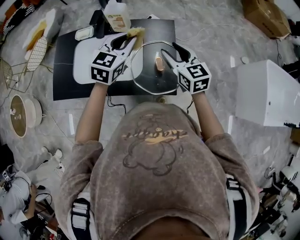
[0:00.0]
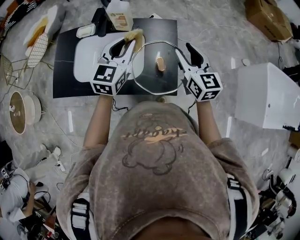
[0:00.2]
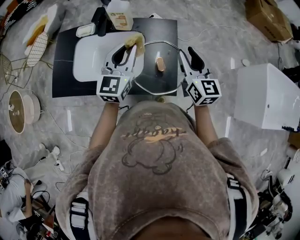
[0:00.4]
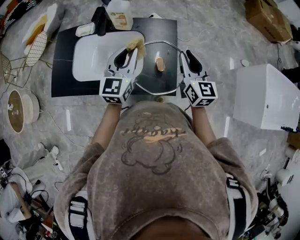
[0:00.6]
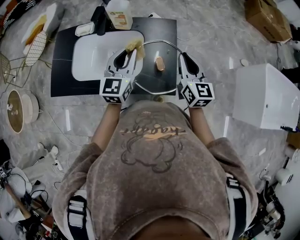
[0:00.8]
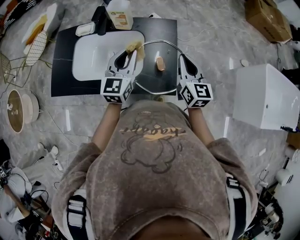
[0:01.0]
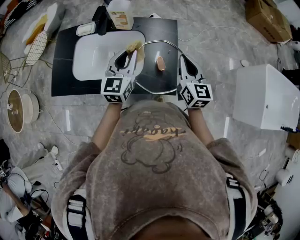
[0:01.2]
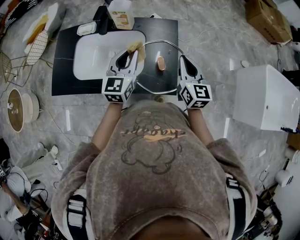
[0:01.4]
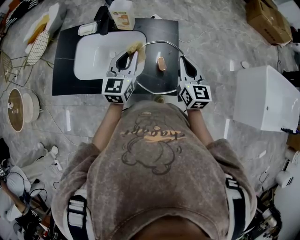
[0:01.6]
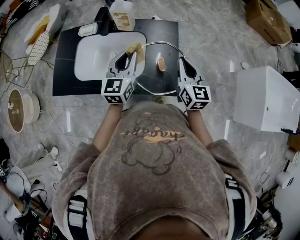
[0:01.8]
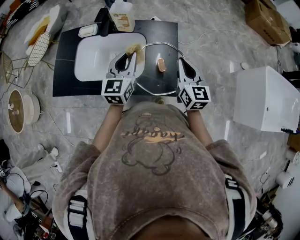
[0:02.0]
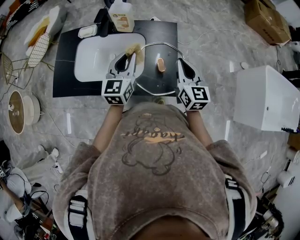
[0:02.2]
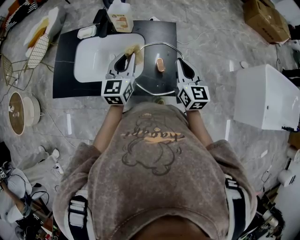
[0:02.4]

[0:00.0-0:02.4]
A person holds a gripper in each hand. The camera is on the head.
0:00.0 to 0:01.2: The left gripper changes place by about 5 cm, and changes its angle by some 20 degrees. Meanwhile the right gripper ends up roughly 5 cm from where it was, and closes up.
0:01.2 to 0:02.4: The grippers stay close to where they were, moving slightly.

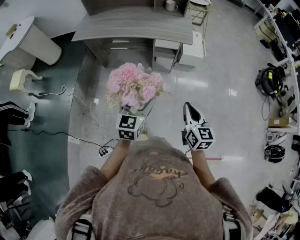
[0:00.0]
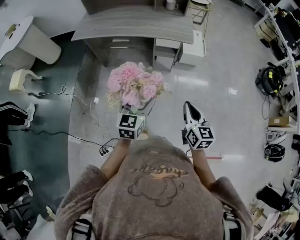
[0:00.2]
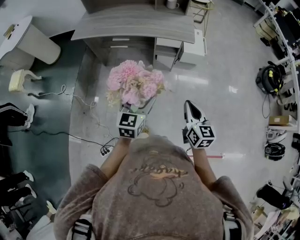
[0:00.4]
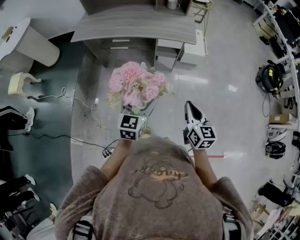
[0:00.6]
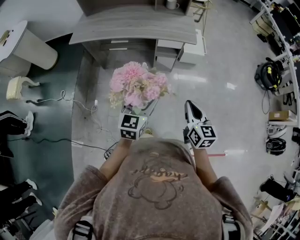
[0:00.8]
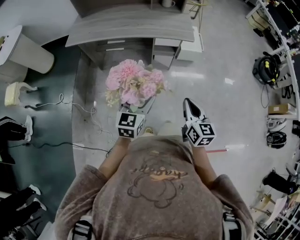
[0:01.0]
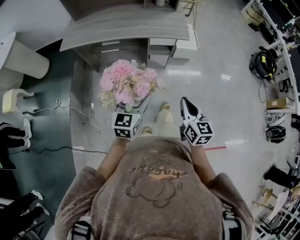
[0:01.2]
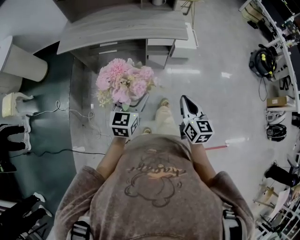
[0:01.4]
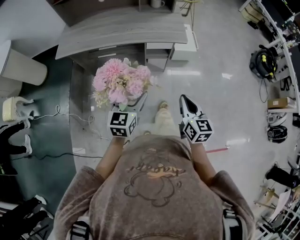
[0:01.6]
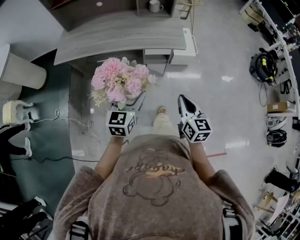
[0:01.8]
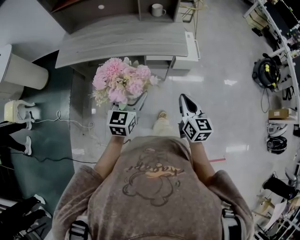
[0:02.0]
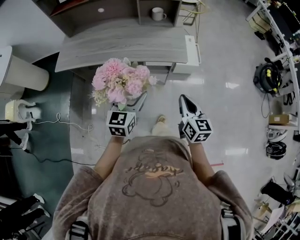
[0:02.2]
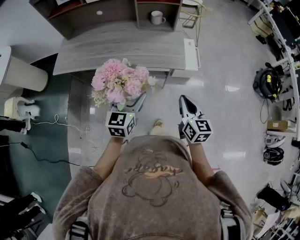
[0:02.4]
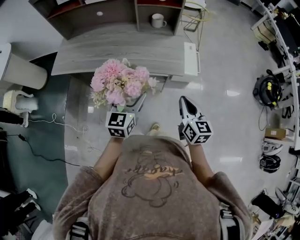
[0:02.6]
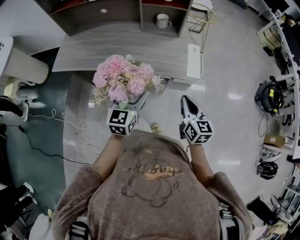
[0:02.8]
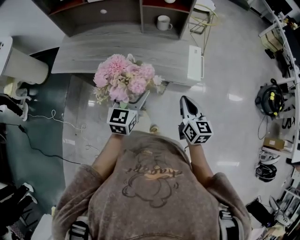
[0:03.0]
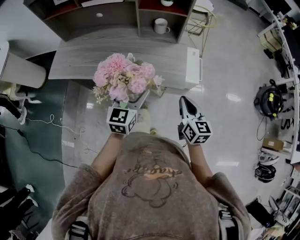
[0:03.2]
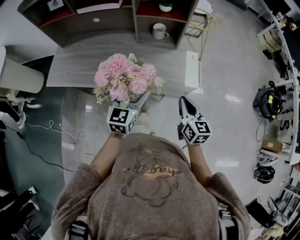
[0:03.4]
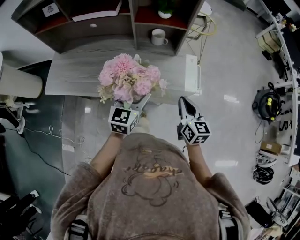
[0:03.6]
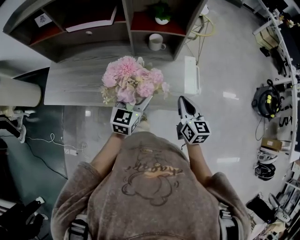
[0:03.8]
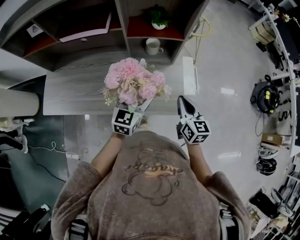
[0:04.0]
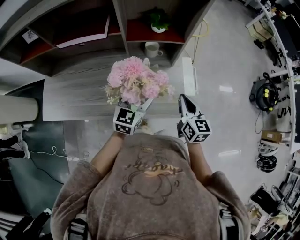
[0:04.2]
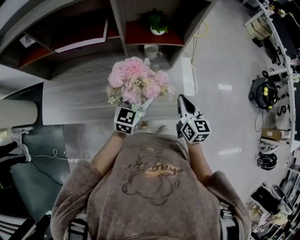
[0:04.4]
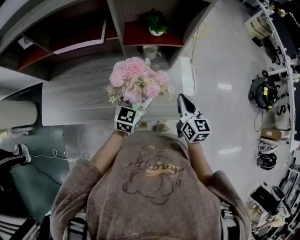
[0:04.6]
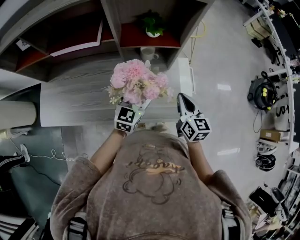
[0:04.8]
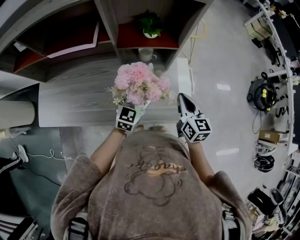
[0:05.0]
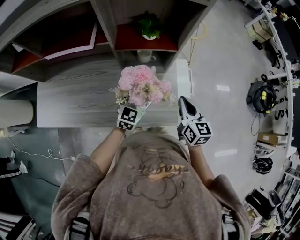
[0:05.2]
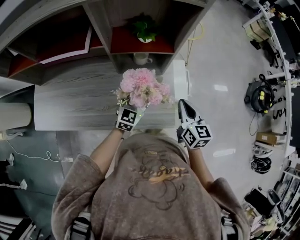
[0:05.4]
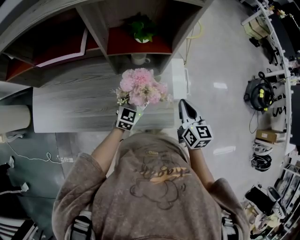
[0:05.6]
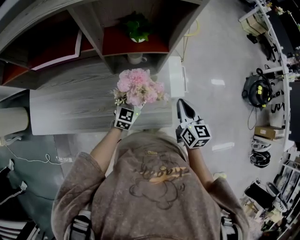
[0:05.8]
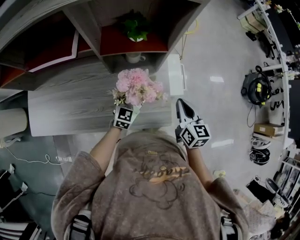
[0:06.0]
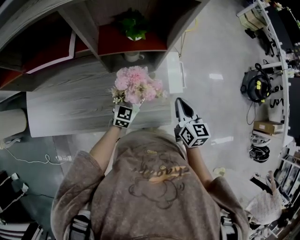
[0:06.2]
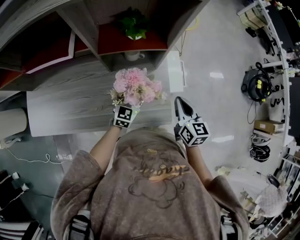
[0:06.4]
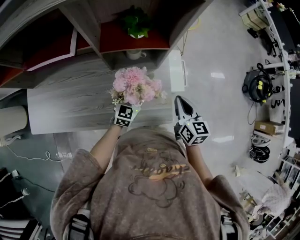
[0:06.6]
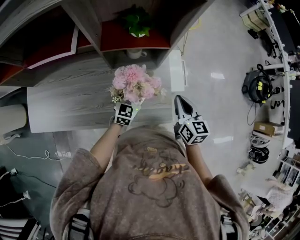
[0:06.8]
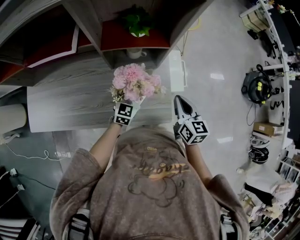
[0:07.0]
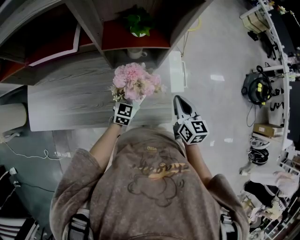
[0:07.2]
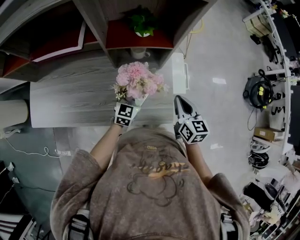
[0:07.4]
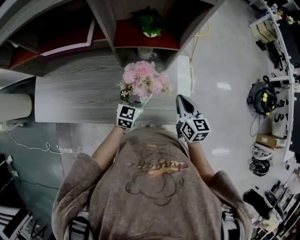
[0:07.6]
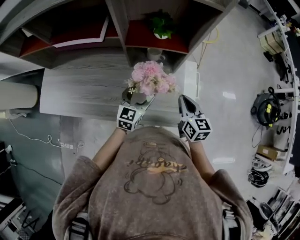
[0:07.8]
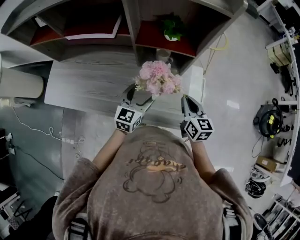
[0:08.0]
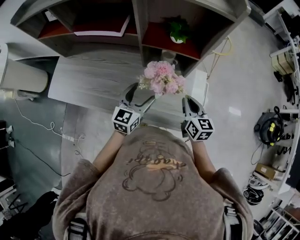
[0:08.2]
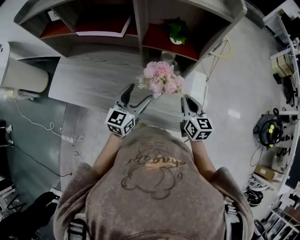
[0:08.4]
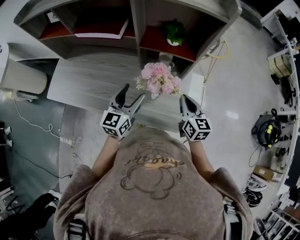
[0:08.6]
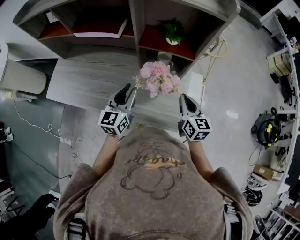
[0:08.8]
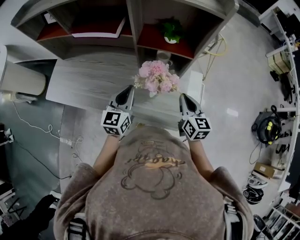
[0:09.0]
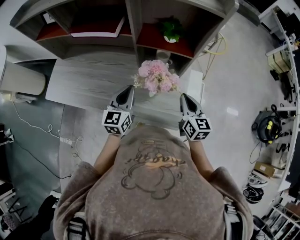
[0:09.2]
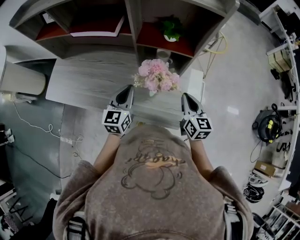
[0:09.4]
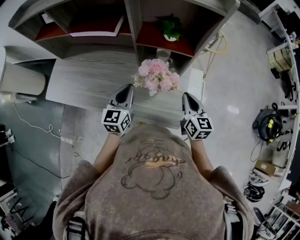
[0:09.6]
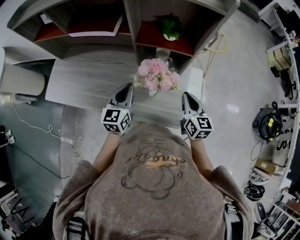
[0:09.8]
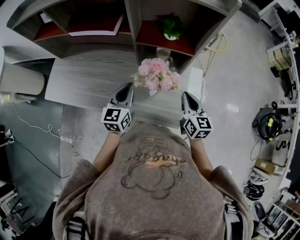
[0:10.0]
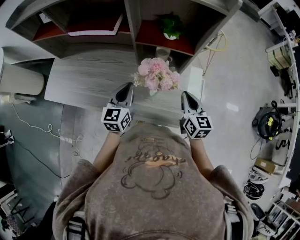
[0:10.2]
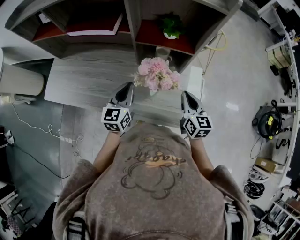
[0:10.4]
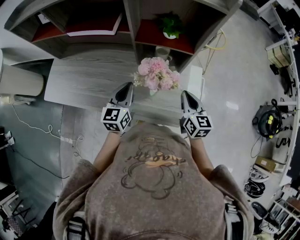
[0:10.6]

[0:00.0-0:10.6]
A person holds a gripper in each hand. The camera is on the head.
0:00.0 to 0:01.6: The grippers both shift forward and to the left by approximately 15 cm.
0:01.6 to 0:03.0: The grippers both shift forward by about 30 cm.
0:03.0 to 0:04.6: The two grippers go roughly 30 cm forward.
0:04.6 to 0:06.0: The right gripper goes approximately 5 cm to the right; the left gripper moves downward and forward, some 15 cm.
0:06.0 to 0:07.6: The grippers stay close to where they were, moving slightly.
0:07.6 to 0:09.0: The left gripper shifts some 15 cm upward and to the left, changes its angle by approximately 20 degrees, and closes its fingers.
0:09.0 to 0:10.6: The grippers make only small movements.

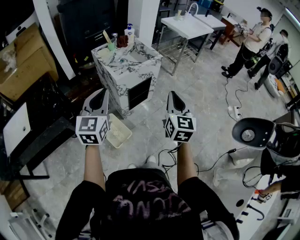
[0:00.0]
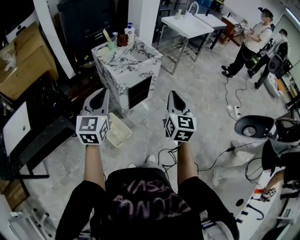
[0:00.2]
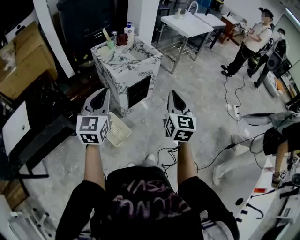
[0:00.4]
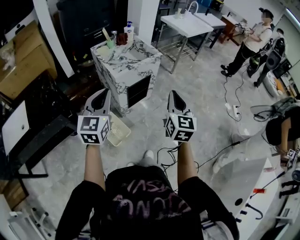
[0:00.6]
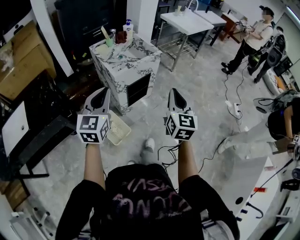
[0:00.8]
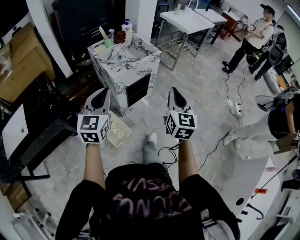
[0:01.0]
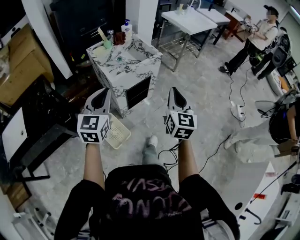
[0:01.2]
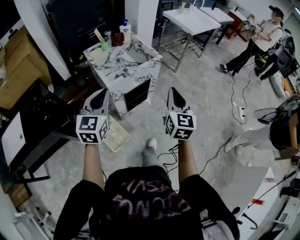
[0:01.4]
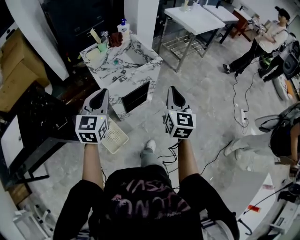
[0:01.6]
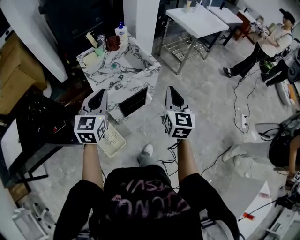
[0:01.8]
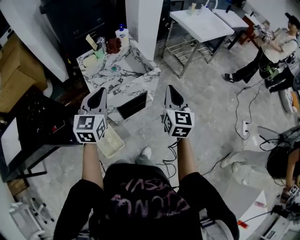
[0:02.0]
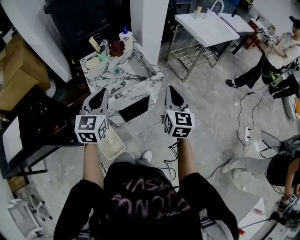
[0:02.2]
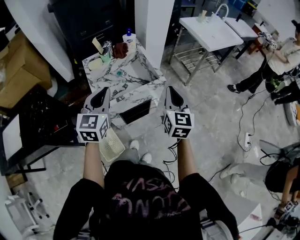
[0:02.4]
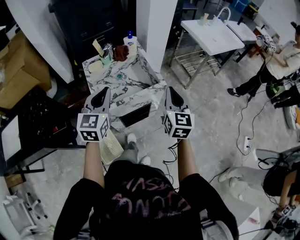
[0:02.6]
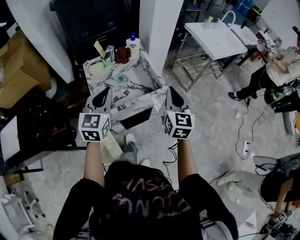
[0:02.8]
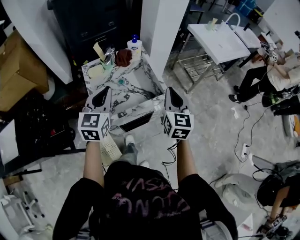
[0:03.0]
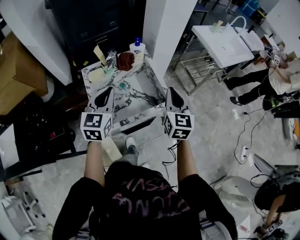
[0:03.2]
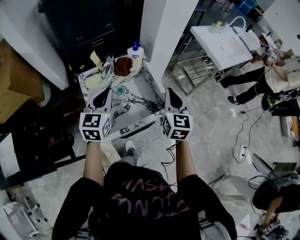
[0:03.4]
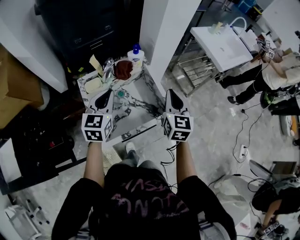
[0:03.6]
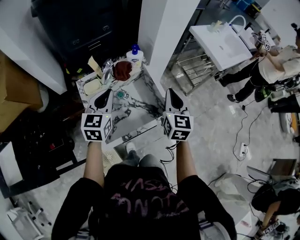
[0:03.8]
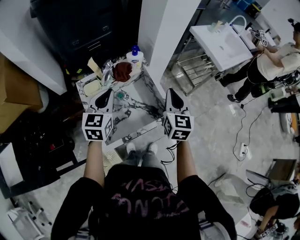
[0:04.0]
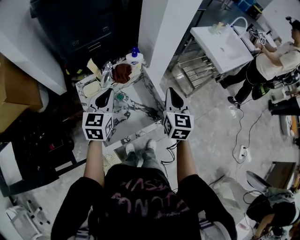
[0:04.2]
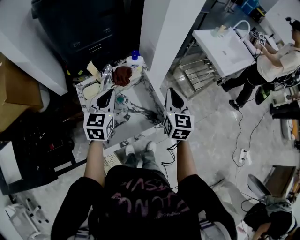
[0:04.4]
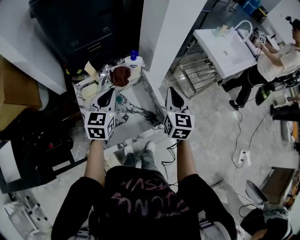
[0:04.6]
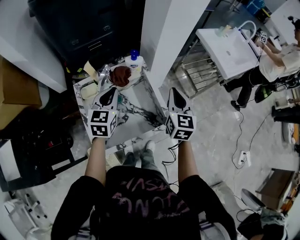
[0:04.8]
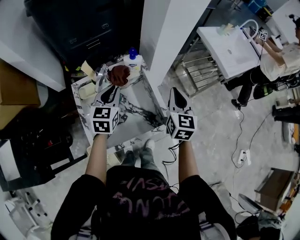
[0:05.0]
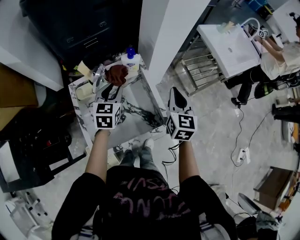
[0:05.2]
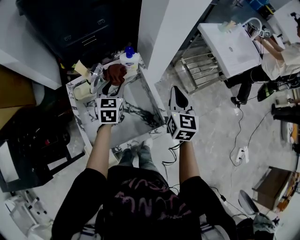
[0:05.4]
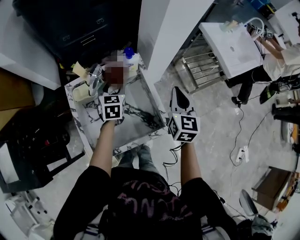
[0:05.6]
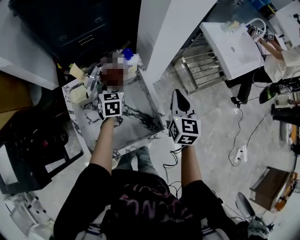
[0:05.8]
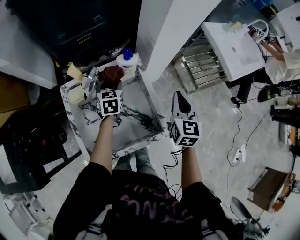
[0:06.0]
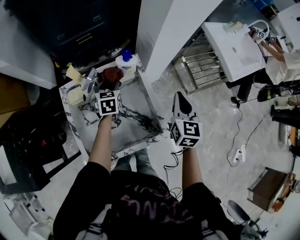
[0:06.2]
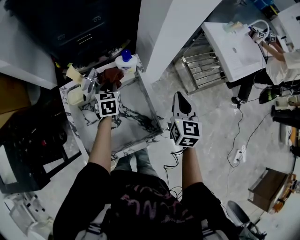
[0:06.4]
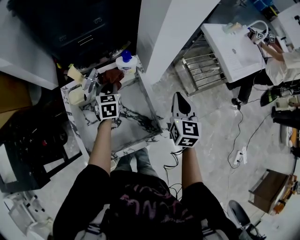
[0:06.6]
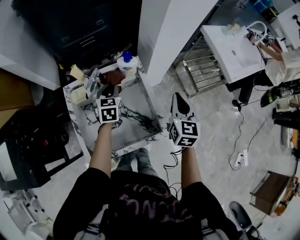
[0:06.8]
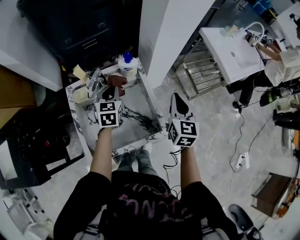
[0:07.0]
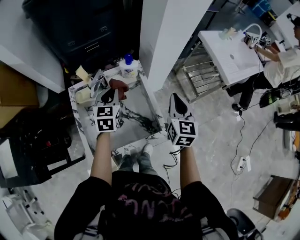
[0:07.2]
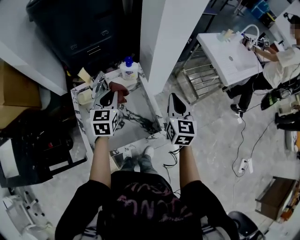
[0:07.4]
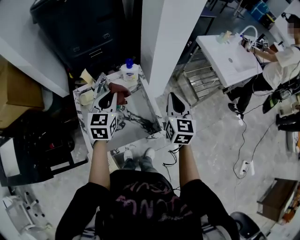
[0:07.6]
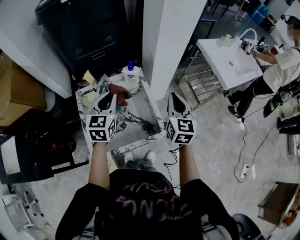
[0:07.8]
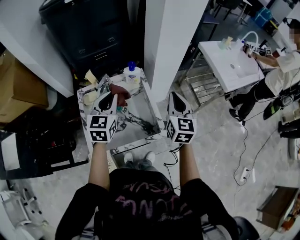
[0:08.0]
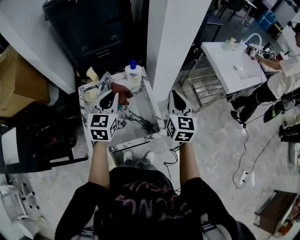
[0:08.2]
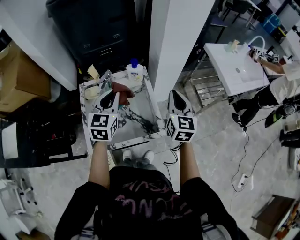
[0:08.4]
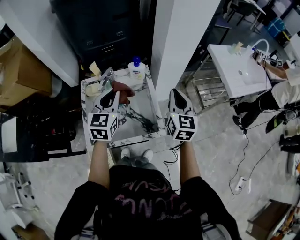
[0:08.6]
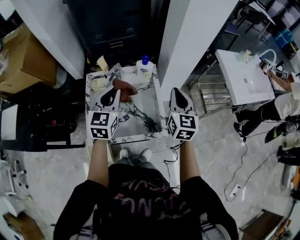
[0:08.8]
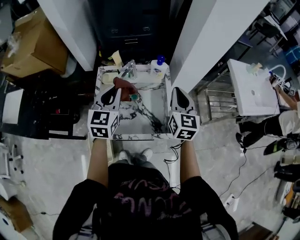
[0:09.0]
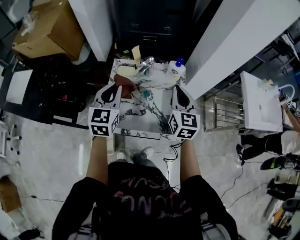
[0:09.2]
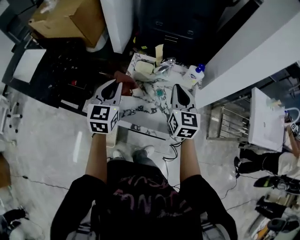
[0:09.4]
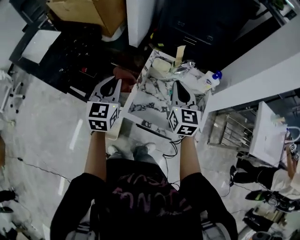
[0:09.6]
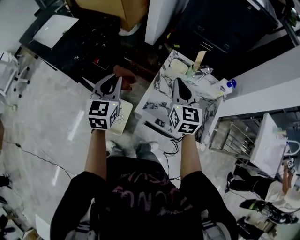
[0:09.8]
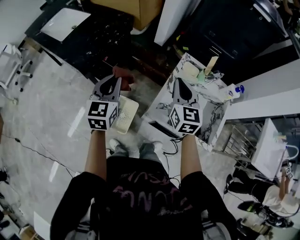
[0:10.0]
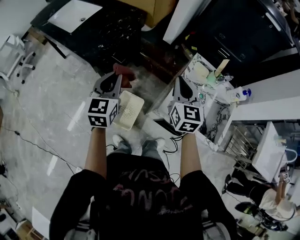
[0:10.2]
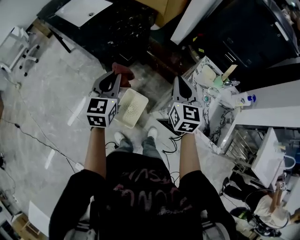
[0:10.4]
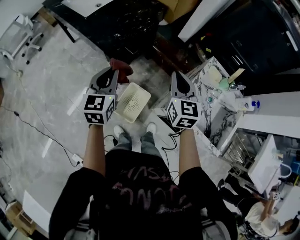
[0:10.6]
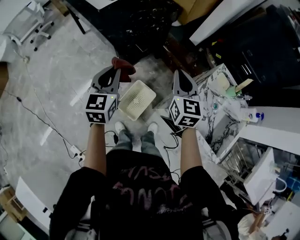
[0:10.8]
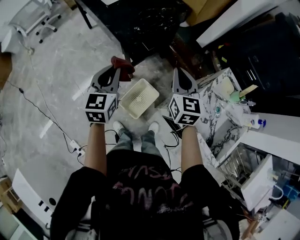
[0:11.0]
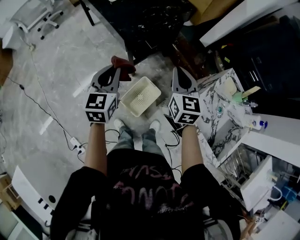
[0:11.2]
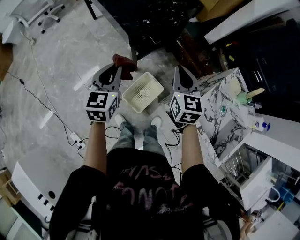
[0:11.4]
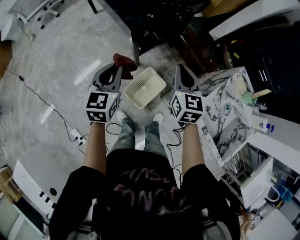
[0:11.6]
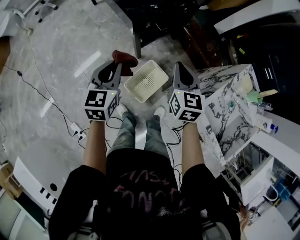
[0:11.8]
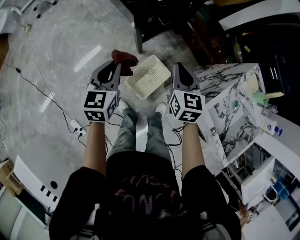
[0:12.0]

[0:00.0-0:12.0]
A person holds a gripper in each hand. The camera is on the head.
0:00.0 to 0:01.6: The two grippers go roughly 20 cm forward.
0:01.6 to 0:03.0: Both grippers move forward, about 25 cm.
0:03.0 to 0:04.4: The two grippers go some 20 cm forward.
0:04.4 to 0:06.0: The left gripper travels downward and forward by some 25 cm, rotates roughly 20 degrees, and opens its fingers. Meanwhile the right gripper goes roughly 10 cm forward, downward and to the right.
0:06.0 to 0:07.6: The right gripper travels upward by roughly 5 cm; the left gripper moves upward and backward, approximately 20 cm, and closes.
0:07.6 to 0:09.0: The left gripper travels backward and to the left by roughly 10 cm; the right gripper is displaced to the left by some 5 cm.
0:09.0 to 0:10.4: The two grippers travel together, roughly 50 cm. The right gripper changes its angle by approximately 40 degrees. Meanwhile the left gripper changes its angle by about 40 degrees.
0:10.4 to 0:12.0: Both grippers move downward and to the left, roughly 20 cm. The left gripper turns by roughly 20 degrees, while the right gripper changes its angle by approximately 20 degrees.
